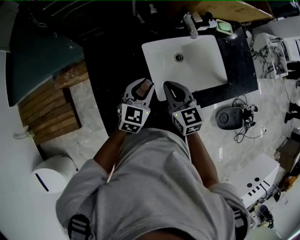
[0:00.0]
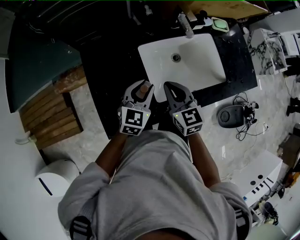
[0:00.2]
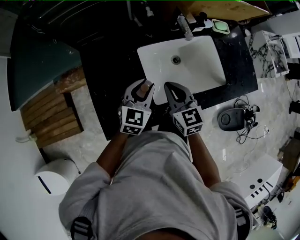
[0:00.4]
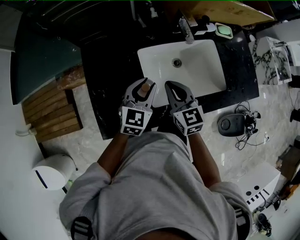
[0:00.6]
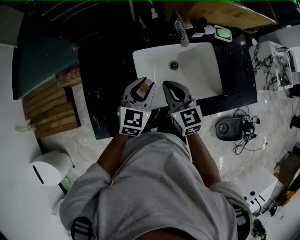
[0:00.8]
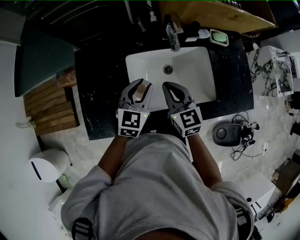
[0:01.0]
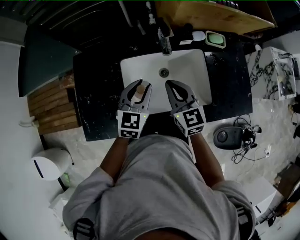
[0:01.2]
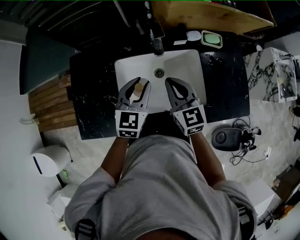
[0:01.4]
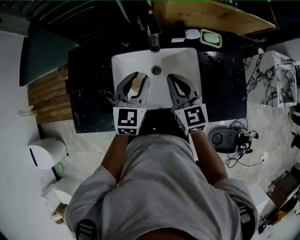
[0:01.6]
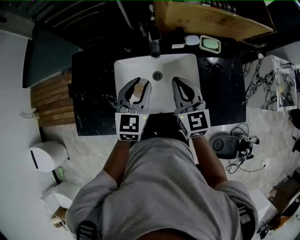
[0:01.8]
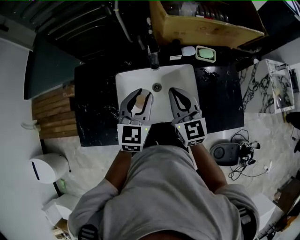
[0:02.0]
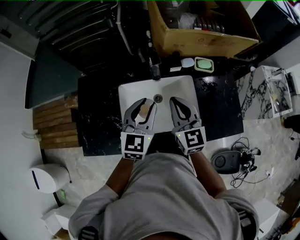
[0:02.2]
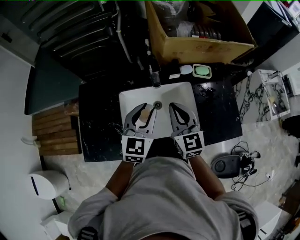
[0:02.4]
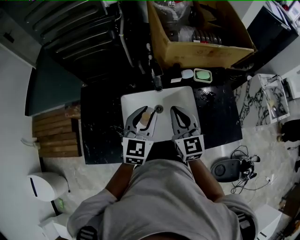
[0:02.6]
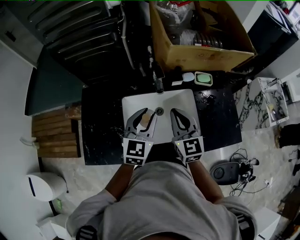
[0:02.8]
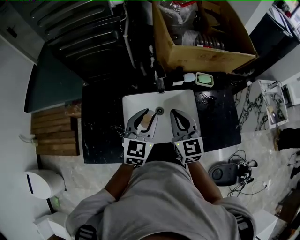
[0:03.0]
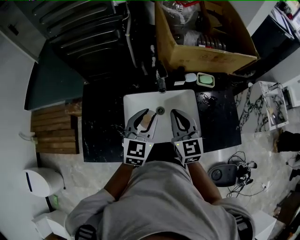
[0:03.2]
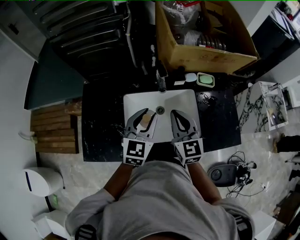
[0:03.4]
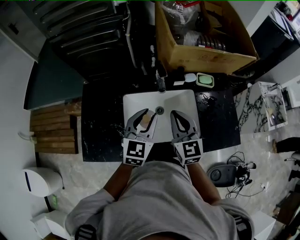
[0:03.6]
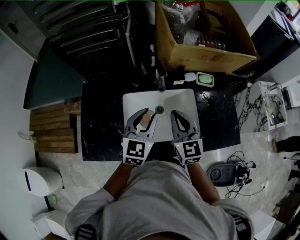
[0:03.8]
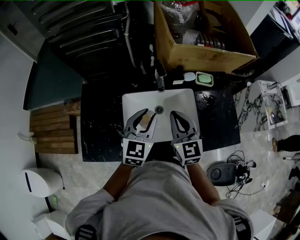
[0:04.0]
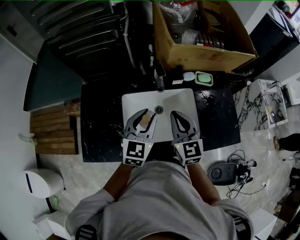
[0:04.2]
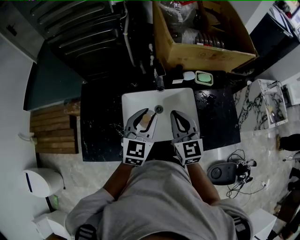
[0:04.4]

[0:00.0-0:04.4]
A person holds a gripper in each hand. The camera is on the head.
0:00.0 to 0:01.4: Both grippers travel together to the right and forward, roughly 20 cm.
0:01.4 to 0:03.0: Both grippers move upward, about 5 cm.
0:03.0 to 0:04.4: Both grippers stay about where they are.

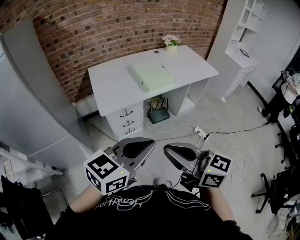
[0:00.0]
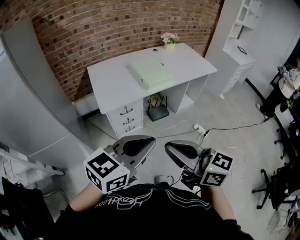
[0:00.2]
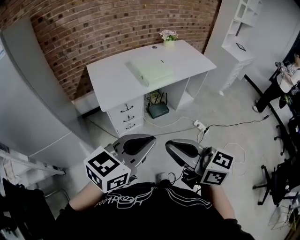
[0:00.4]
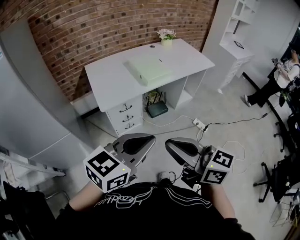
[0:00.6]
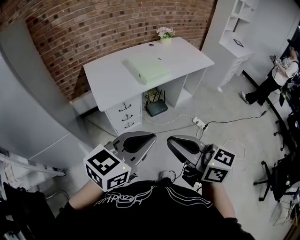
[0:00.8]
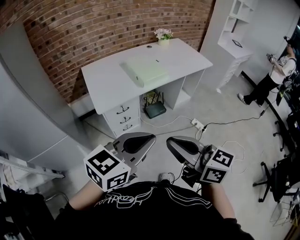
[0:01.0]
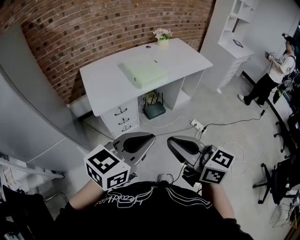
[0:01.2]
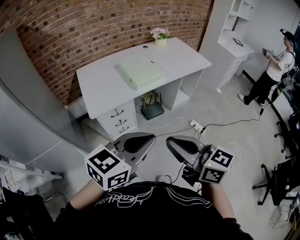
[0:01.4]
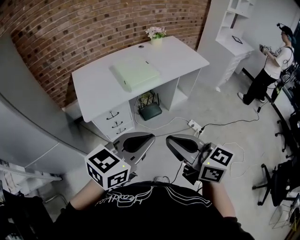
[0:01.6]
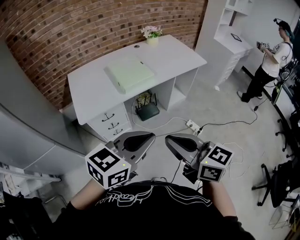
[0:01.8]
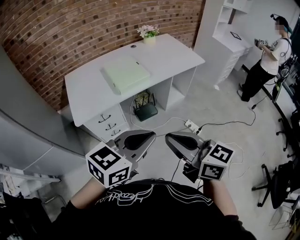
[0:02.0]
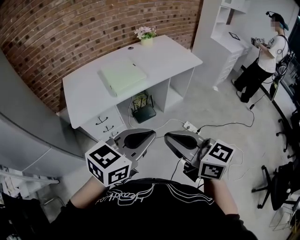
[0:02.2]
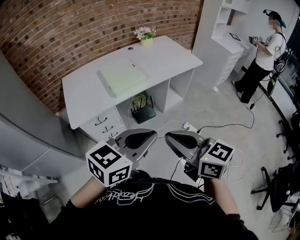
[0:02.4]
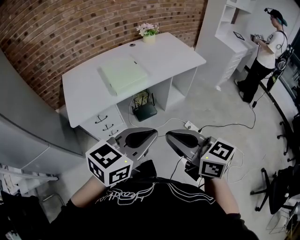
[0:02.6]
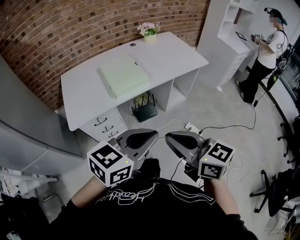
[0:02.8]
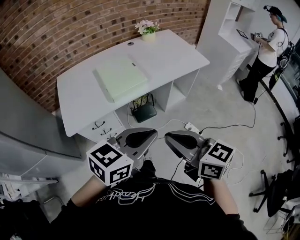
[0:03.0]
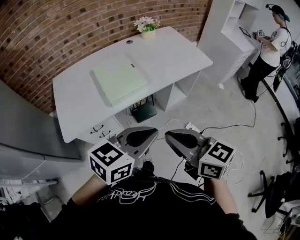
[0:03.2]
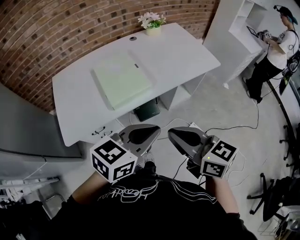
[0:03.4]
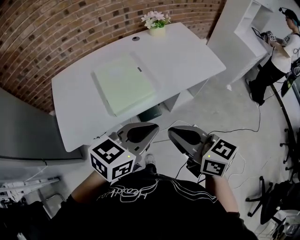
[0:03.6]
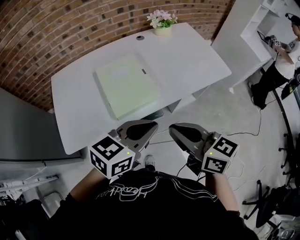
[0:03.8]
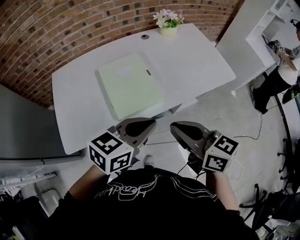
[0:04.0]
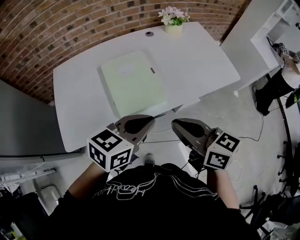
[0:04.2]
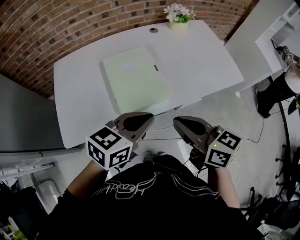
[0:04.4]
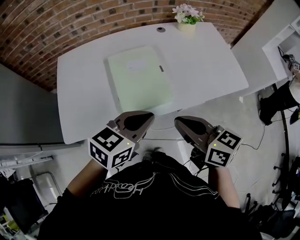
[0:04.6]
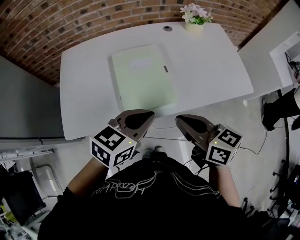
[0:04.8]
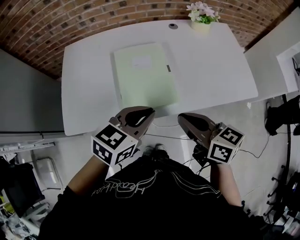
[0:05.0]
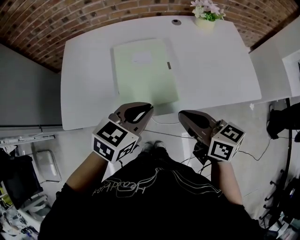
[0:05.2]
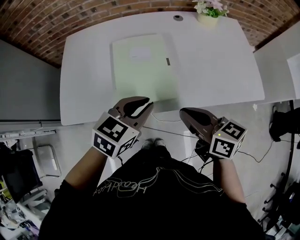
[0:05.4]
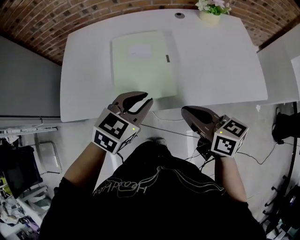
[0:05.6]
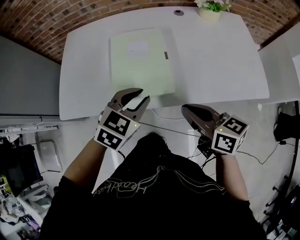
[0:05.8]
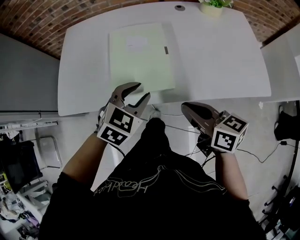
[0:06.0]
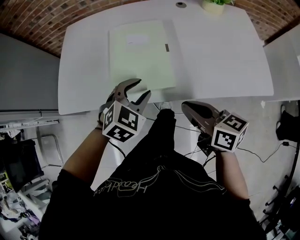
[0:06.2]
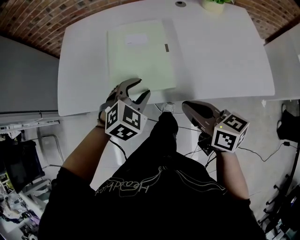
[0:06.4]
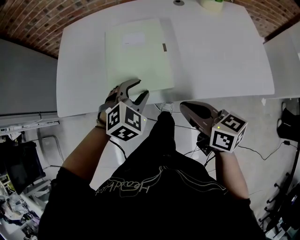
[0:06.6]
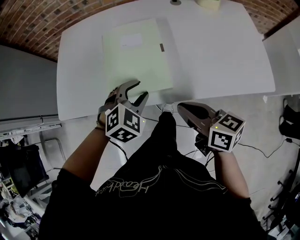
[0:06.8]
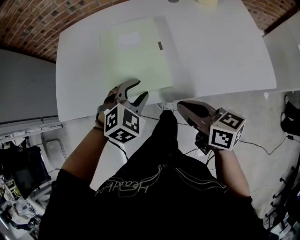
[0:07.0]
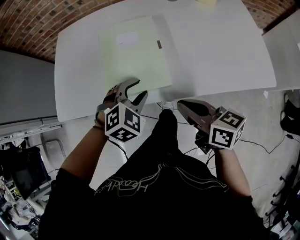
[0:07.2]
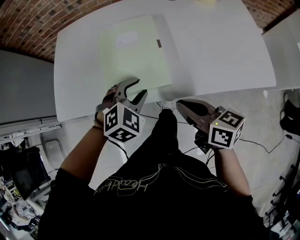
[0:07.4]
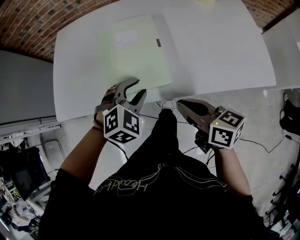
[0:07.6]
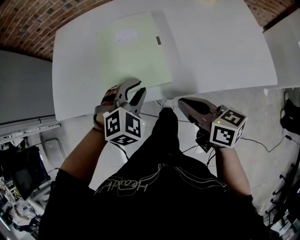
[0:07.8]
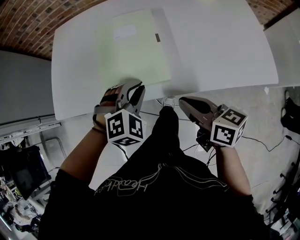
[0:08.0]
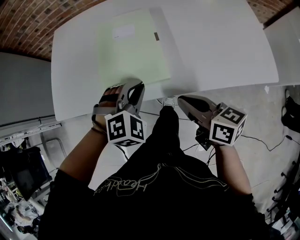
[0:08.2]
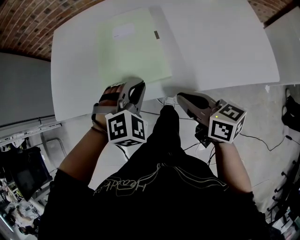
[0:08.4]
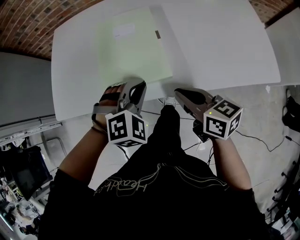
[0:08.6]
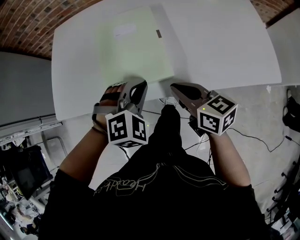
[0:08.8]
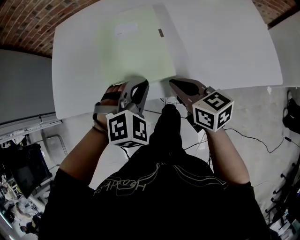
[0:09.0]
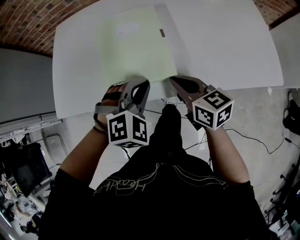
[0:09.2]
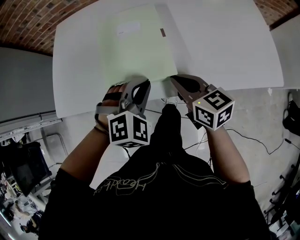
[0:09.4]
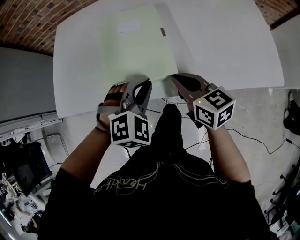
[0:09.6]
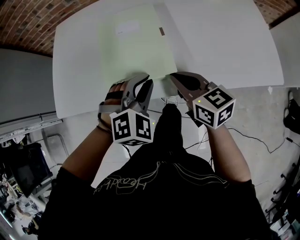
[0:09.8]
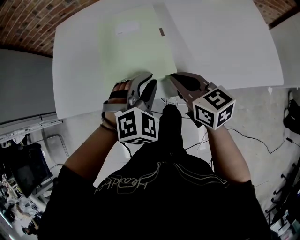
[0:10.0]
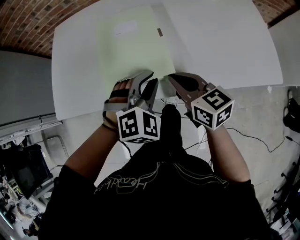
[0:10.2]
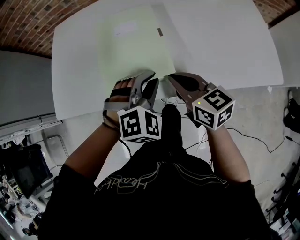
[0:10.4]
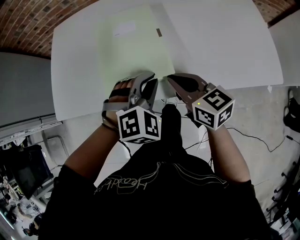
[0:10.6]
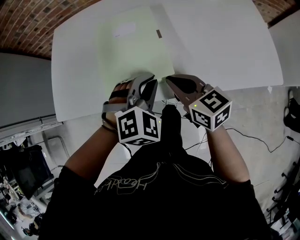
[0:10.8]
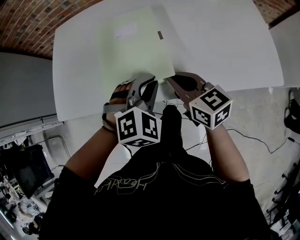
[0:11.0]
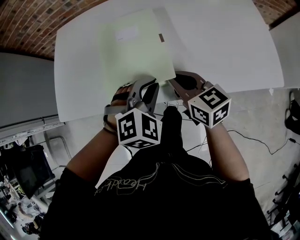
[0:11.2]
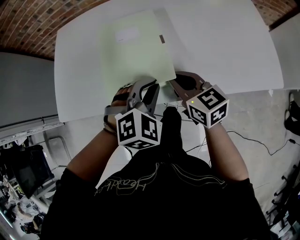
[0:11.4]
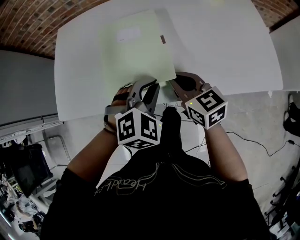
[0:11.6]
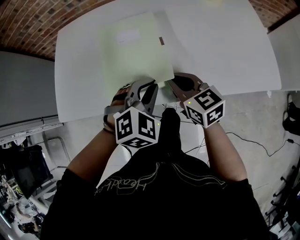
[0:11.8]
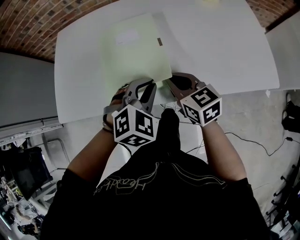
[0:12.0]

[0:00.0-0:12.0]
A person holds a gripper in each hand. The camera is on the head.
0:00.0 to 0:01.6: The two grippers go about 10 cm to the right and forward.
0:01.6 to 0:03.0: The two grippers go some 20 cm forward and to the right.
0:03.0 to 0:04.4: The grippers both shift forward by about 25 cm.
0:04.4 to 0:06.0: Both grippers move downward, roughly 10 cm. The left gripper rotates about 40 degrees, and opens.
0:06.0 to 0:07.6: The left gripper swivels some 20 degrees.
0:07.6 to 0:09.0: The right gripper heads forward, covering some 5 cm, while the left gripper closes.
0:09.0 to 0:12.0: There are only small adjustments of the grippers.

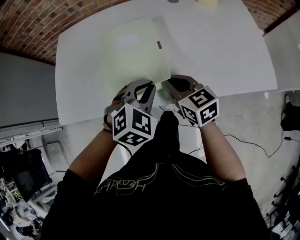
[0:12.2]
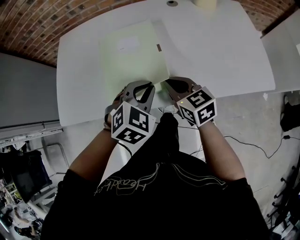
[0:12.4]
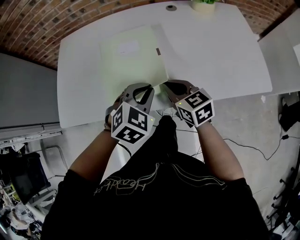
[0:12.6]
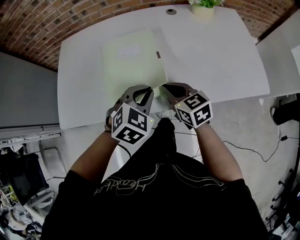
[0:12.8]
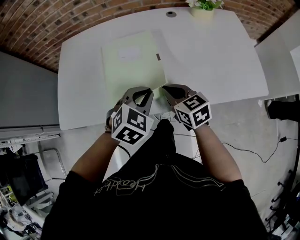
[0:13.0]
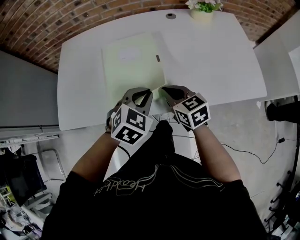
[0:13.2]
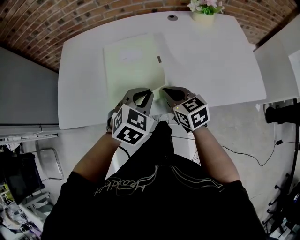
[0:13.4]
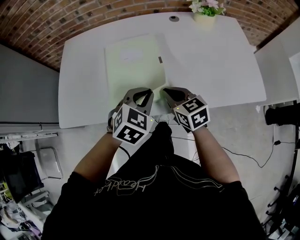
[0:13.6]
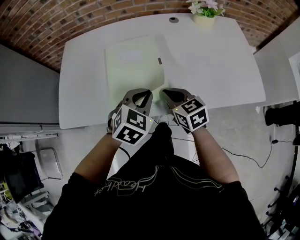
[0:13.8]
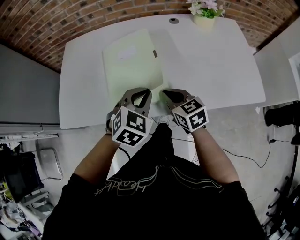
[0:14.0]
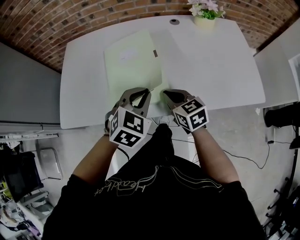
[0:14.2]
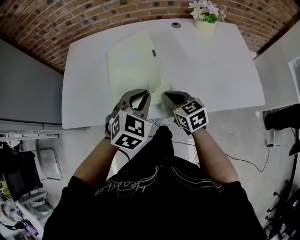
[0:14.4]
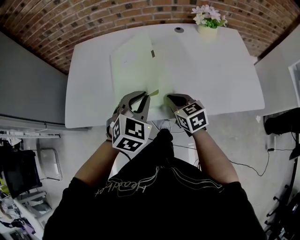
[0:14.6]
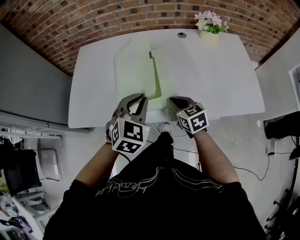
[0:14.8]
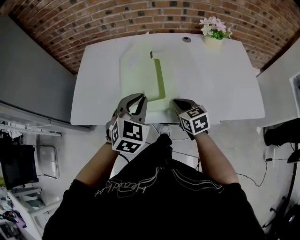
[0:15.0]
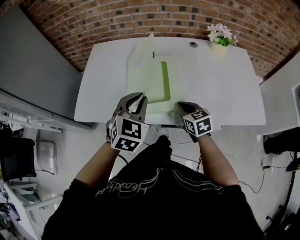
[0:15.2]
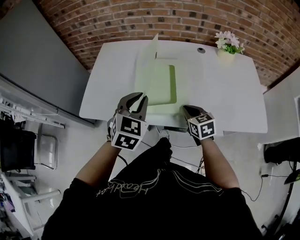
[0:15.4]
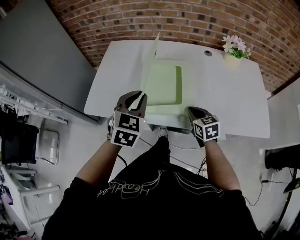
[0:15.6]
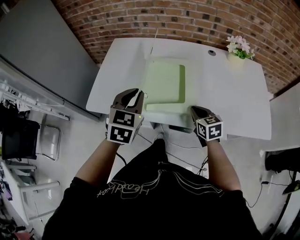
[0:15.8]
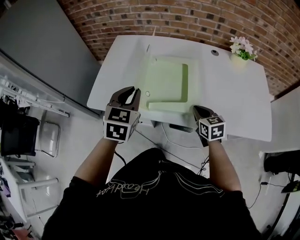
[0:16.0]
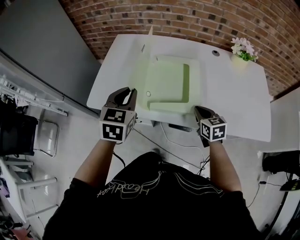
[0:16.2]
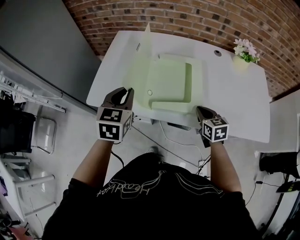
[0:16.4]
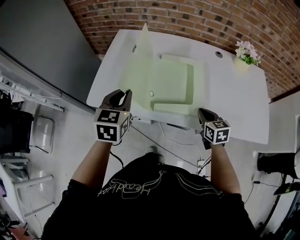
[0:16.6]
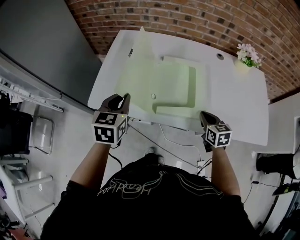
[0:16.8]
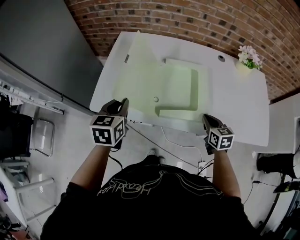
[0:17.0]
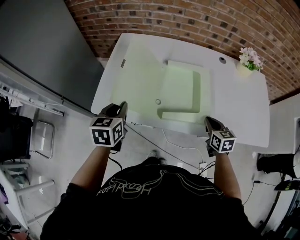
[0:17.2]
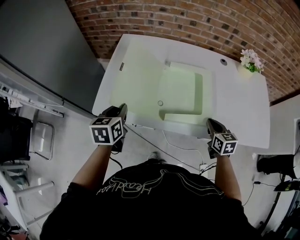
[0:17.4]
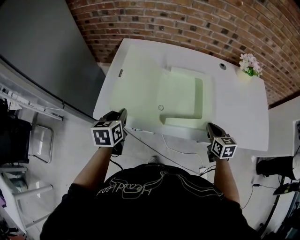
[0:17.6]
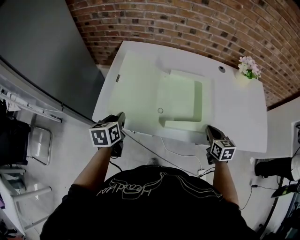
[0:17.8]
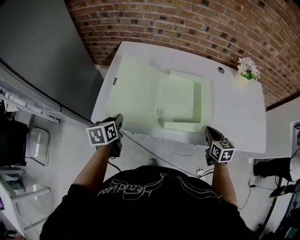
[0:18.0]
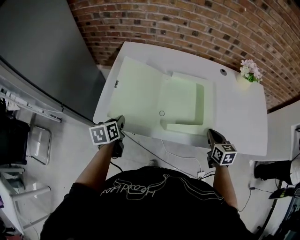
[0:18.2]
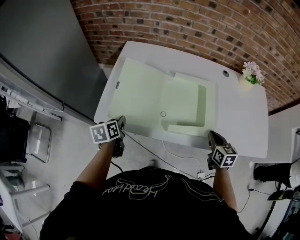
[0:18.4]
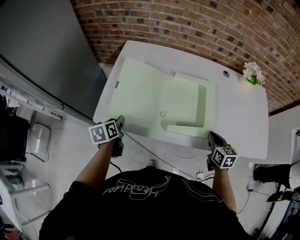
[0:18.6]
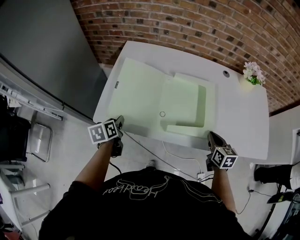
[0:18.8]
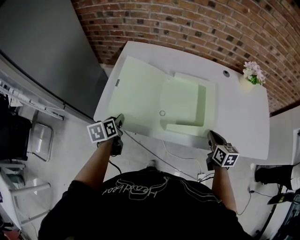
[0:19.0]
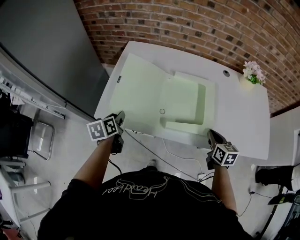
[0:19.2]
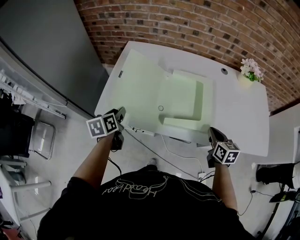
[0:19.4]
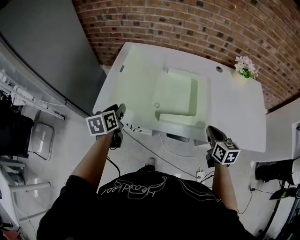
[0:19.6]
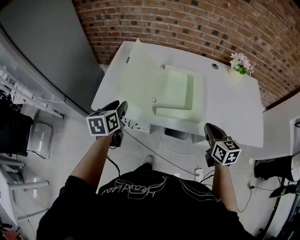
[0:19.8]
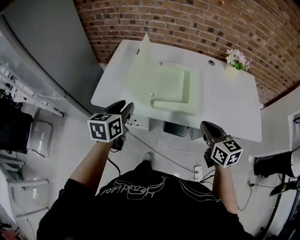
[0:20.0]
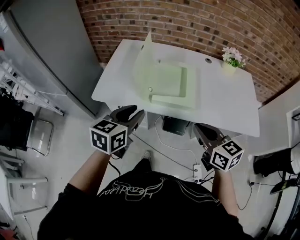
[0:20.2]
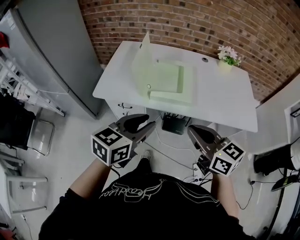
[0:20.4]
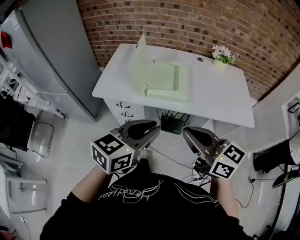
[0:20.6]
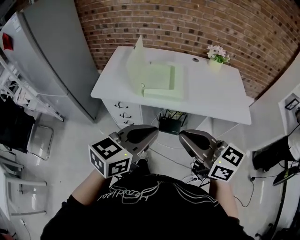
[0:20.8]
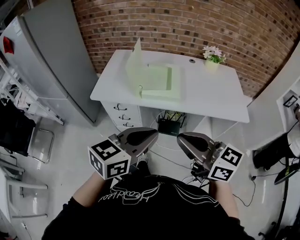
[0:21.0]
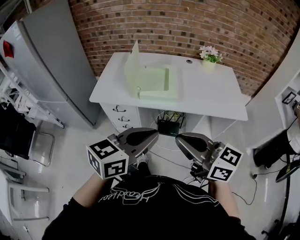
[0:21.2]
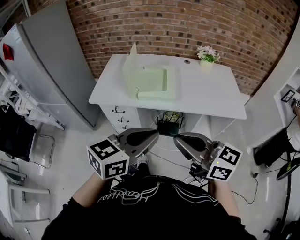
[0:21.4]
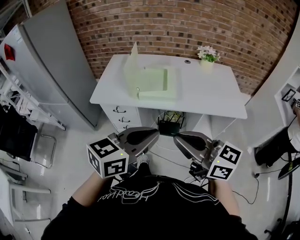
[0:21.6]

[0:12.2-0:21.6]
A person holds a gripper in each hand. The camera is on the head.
0:12.2 to 0:13.8: The grippers move only a little.
0:13.8 to 0:15.4: The left gripper travels to the left and upward by some 15 cm, and swivels approximately 20 degrees.
0:15.4 to 0:17.0: The left gripper moves to the left, approximately 20 cm, and turns by some 30 degrees.
0:17.0 to 0:18.4: The left gripper is displaced downward and to the left by approximately 15 cm, and rotates approximately 30 degrees.
0:18.4 to 0:20.0: The left gripper goes roughly 20 cm upward, to the right and backward, and rotates roughly 30 degrees. Meanwhile the right gripper shifts about 15 cm upward and backward.
0:20.0 to 0:21.6: The left gripper shifts approximately 40 cm backward, to the right and upward, rotates roughly 40 degrees, and closes its fingers, while the right gripper moves backward and upward, some 30 cm, and turns by roughly 30 degrees.
